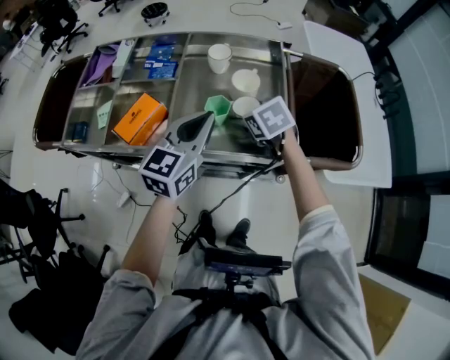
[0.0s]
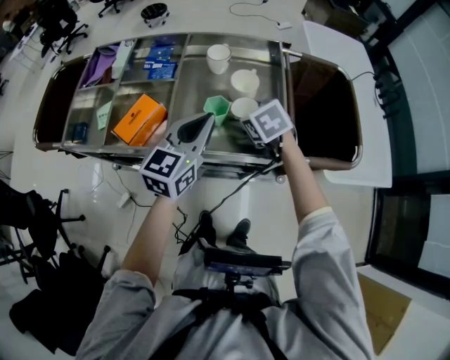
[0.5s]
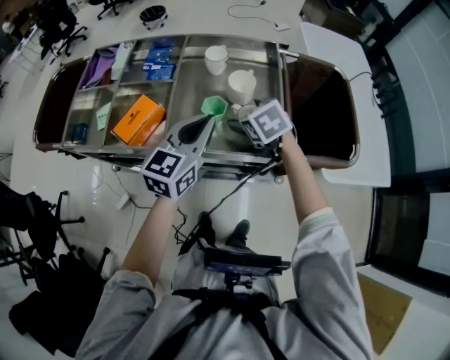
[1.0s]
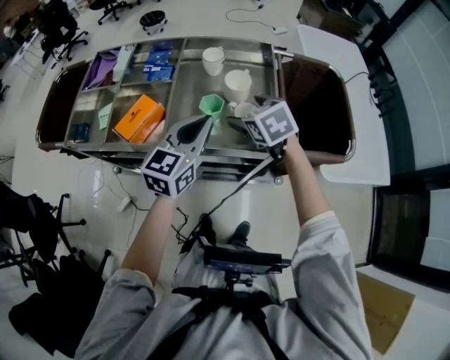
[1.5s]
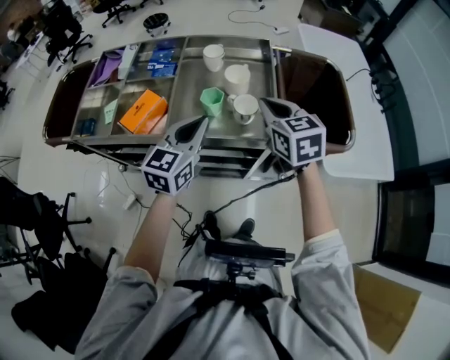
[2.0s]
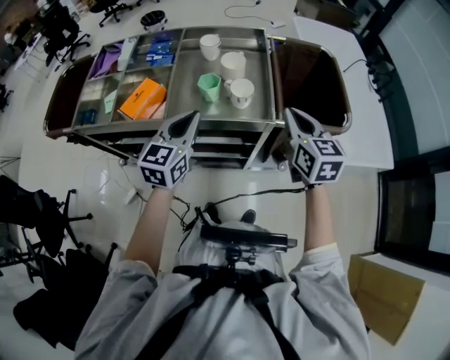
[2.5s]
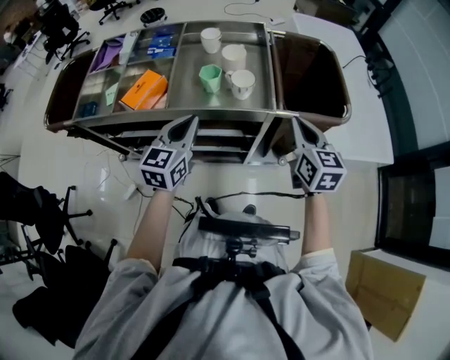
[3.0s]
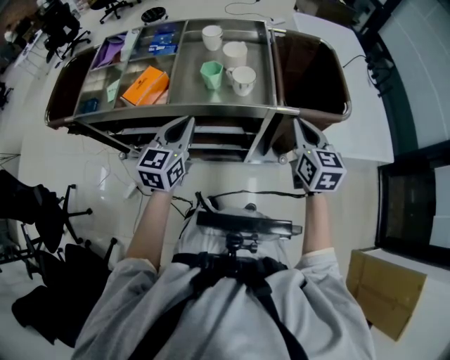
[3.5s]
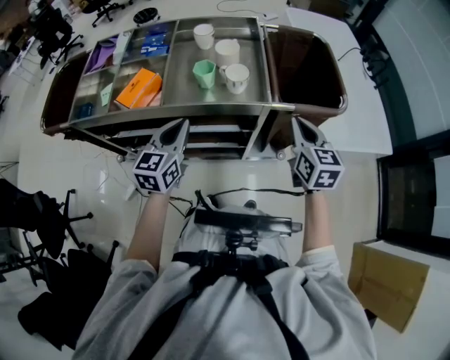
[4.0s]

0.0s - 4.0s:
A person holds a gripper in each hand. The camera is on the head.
0.0s - 2.0s: The right gripper travels upward, backward and to the right by roughly 15 cm, swivels about 30 degrees, and closes its fingers, while the left gripper moves backward, about 5 cm.
2.0s - 4.0s: The left gripper is displaced backward and downward by approximately 10 cm, while the right gripper goes roughly 20 cm backward, to the right and downward.

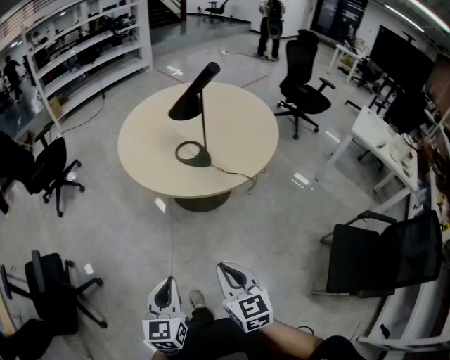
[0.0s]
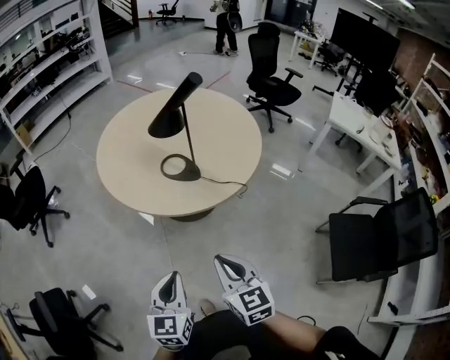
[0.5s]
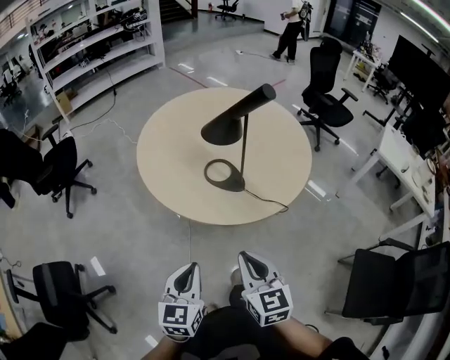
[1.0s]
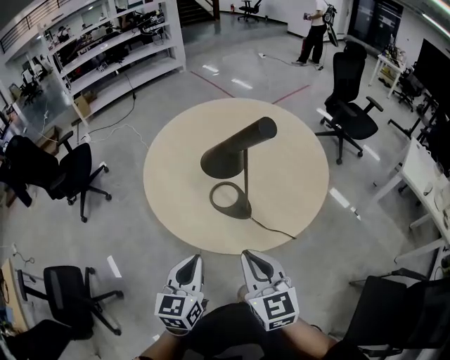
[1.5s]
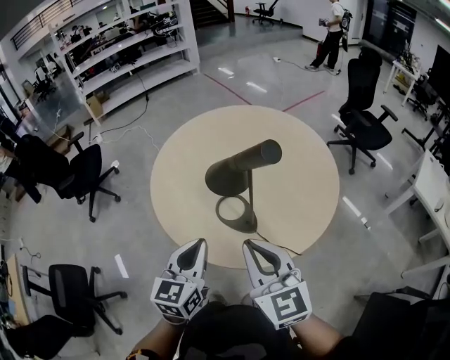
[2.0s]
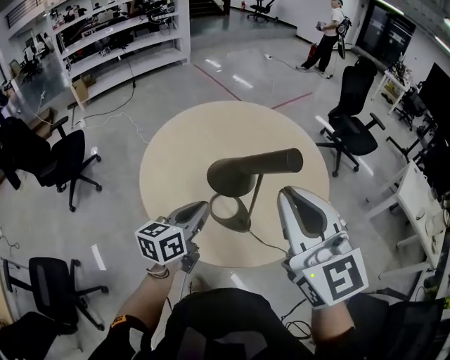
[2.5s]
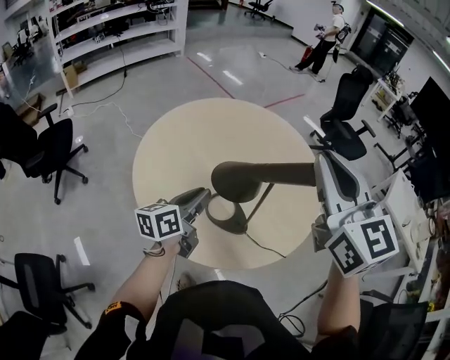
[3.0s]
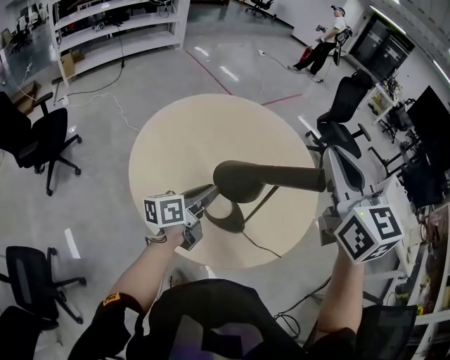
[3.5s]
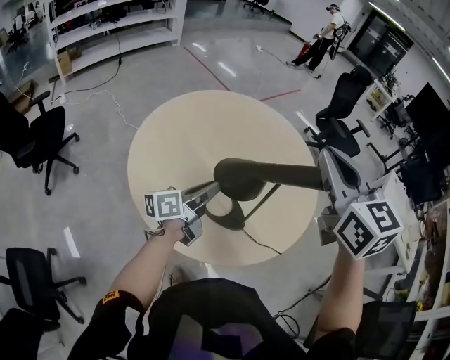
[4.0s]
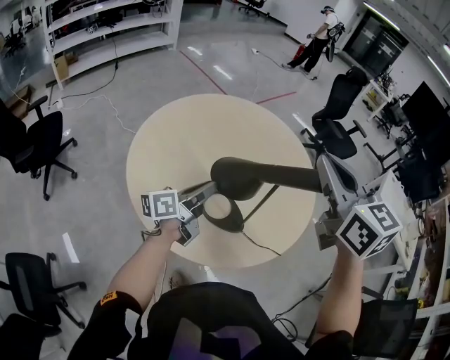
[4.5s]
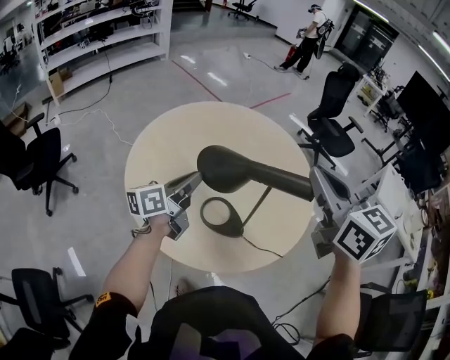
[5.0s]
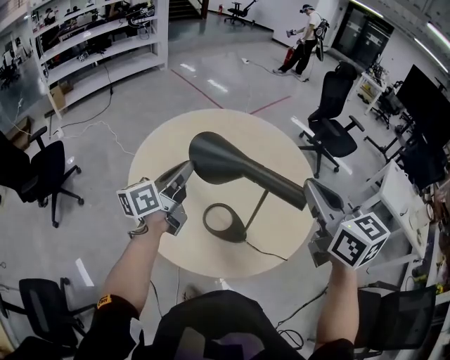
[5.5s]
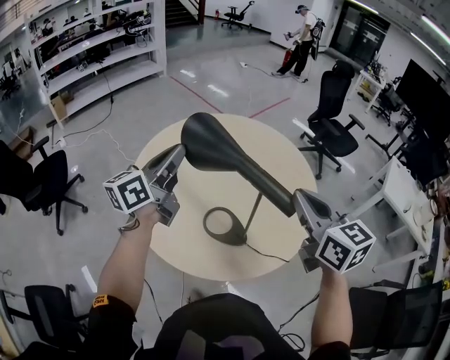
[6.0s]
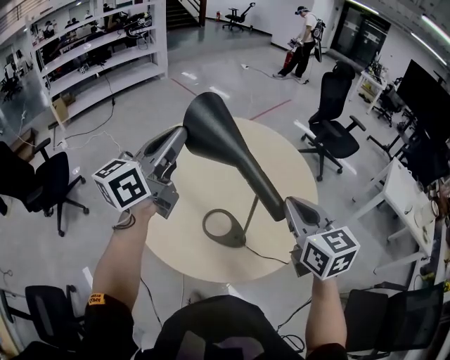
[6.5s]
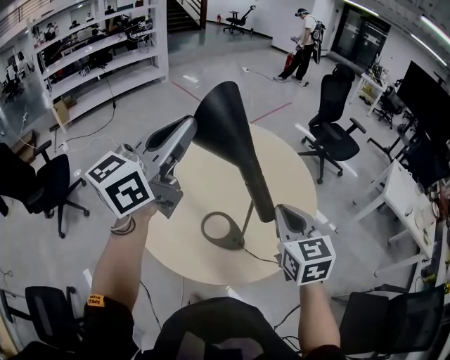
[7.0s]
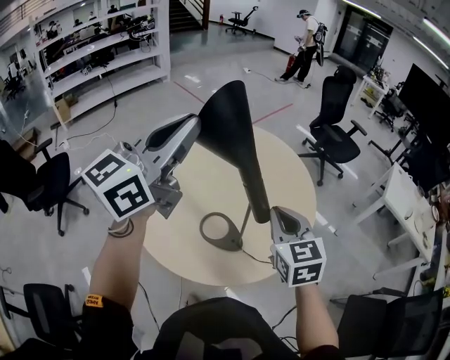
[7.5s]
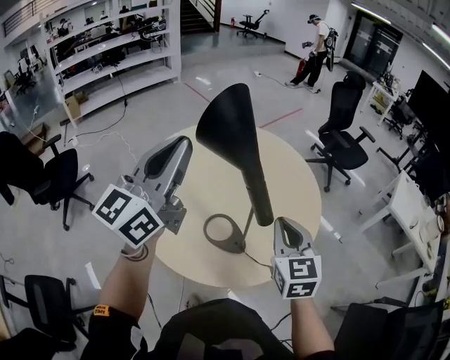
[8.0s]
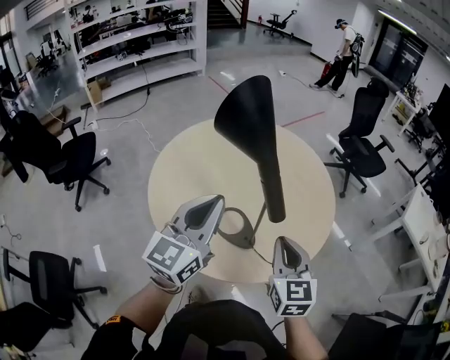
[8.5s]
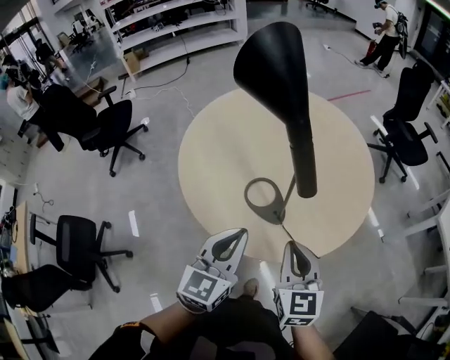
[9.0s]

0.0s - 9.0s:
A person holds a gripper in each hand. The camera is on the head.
0.0s - 2.0s: Both grippers are carried forward, about 50 cm. The right gripper turns by about 30 degrees.
2.0s - 4.5s: The right gripper moves forward and upward, some 25 cm. The left gripper goes some 25 cm forward and to the left, and changes its angle by roughly 60 degrees.
4.5s - 7.0s: The right gripper moves downward and to the right, some 15 cm. Meanwhile the left gripper shifts some 30 cm upward, and twists some 50 degrees clockwise, seen from behind.
7.0s - 9.0s: The right gripper is displaced downward and backward by approximately 15 cm. Meanwhile the left gripper moves downward, backward and to the right, approximately 35 cm, and rotates approximately 40 degrees.

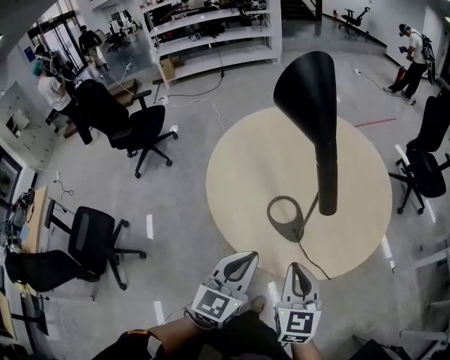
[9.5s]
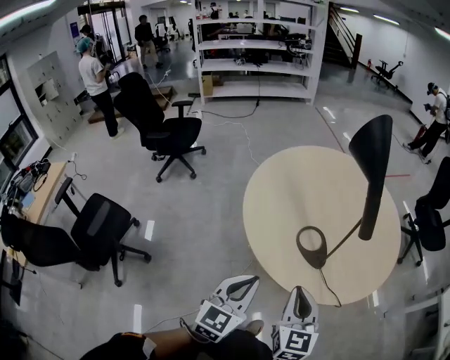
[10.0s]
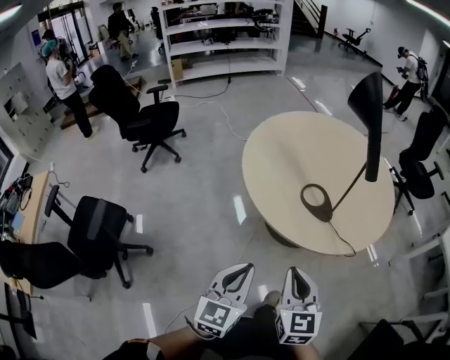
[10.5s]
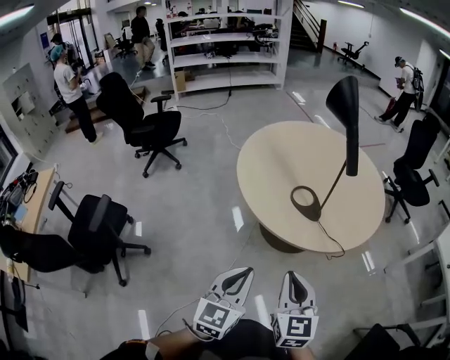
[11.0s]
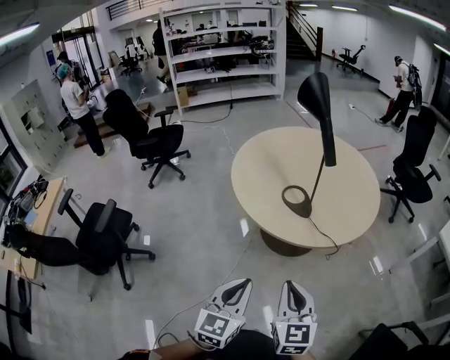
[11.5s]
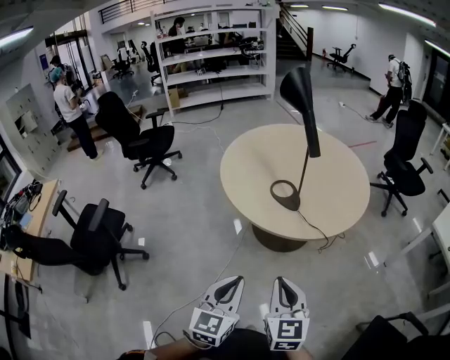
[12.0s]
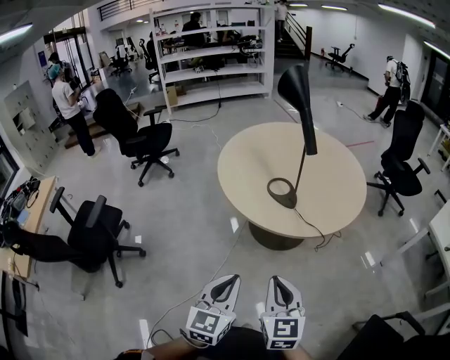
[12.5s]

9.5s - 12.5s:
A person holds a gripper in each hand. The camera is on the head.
9.5s - 11.0s: Both grippers move backward and to the left, some 40 cm.
11.0s - 12.5s: The grippers both shift to the right and backward by approximately 20 cm.

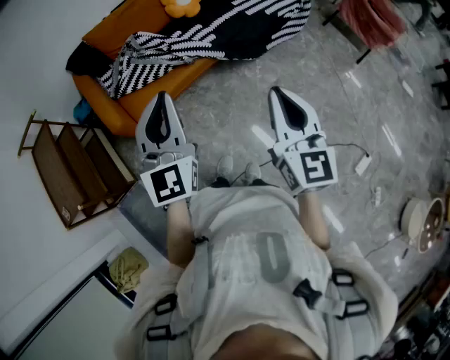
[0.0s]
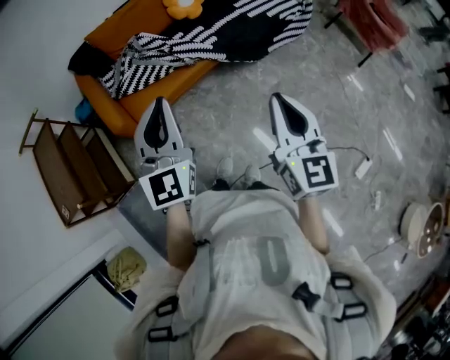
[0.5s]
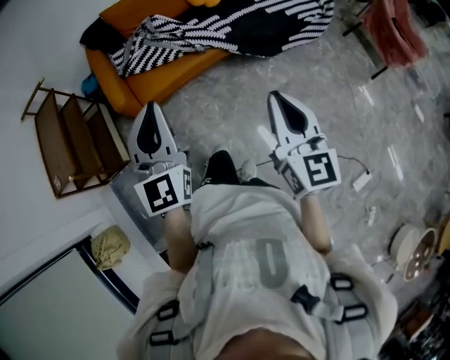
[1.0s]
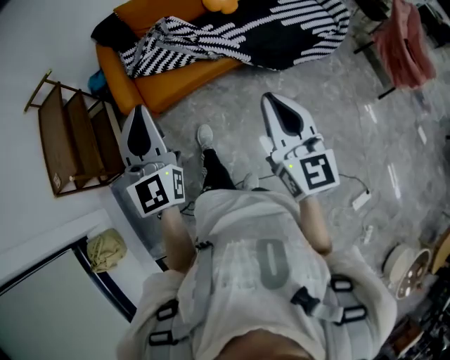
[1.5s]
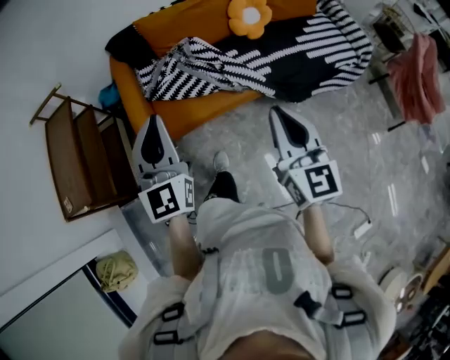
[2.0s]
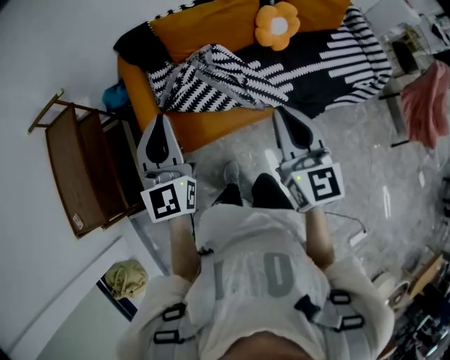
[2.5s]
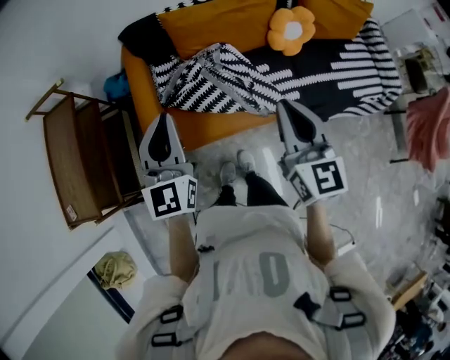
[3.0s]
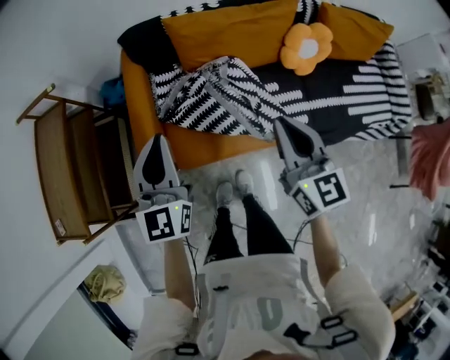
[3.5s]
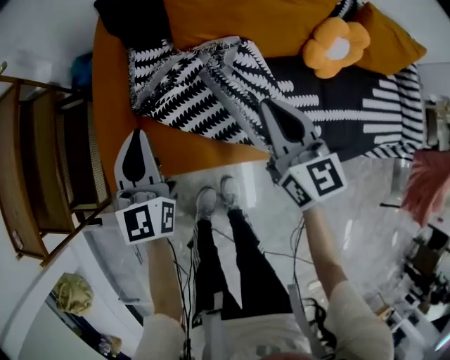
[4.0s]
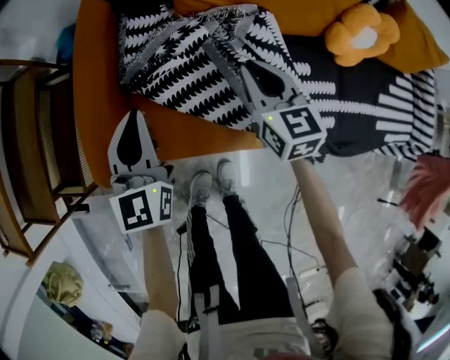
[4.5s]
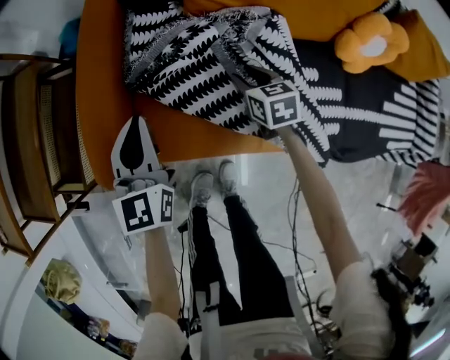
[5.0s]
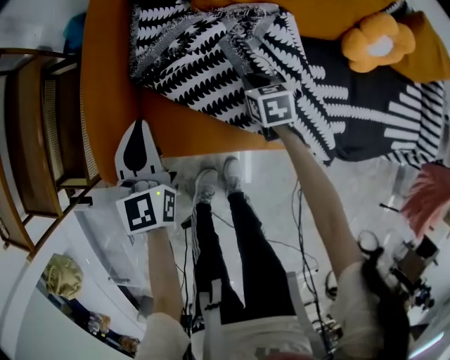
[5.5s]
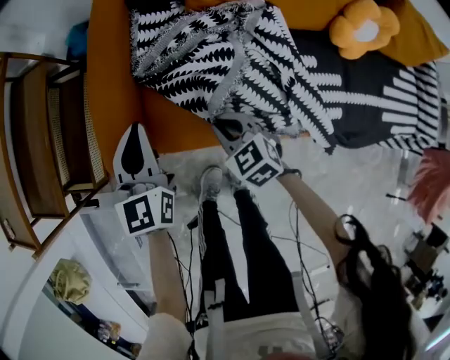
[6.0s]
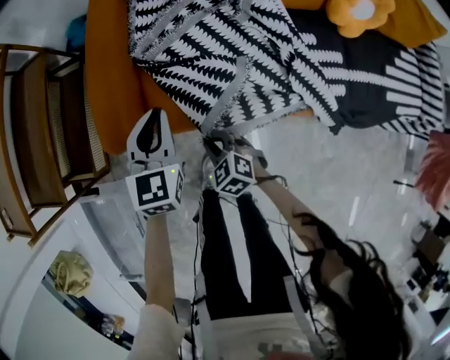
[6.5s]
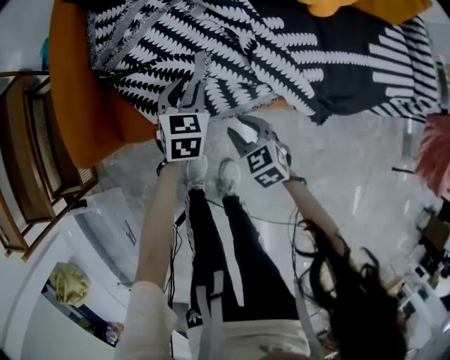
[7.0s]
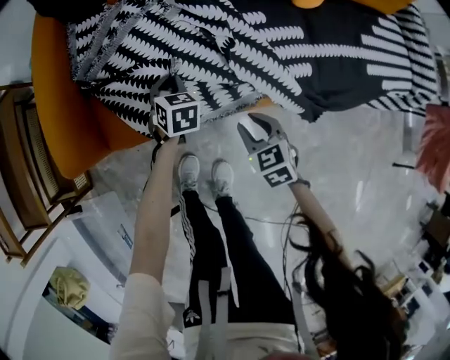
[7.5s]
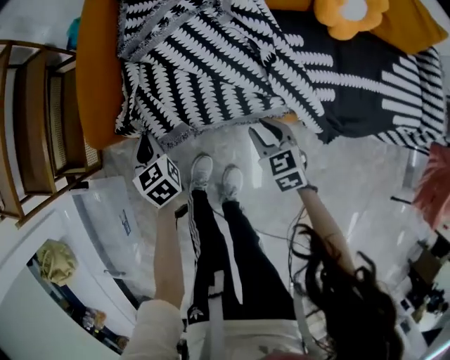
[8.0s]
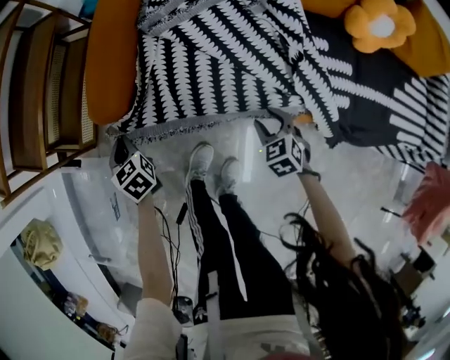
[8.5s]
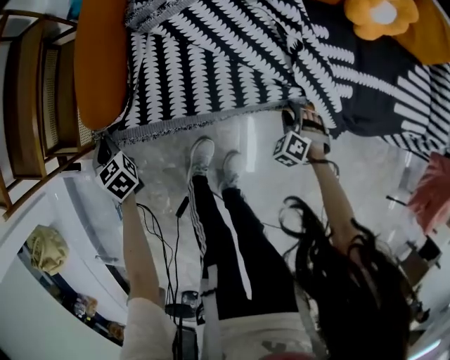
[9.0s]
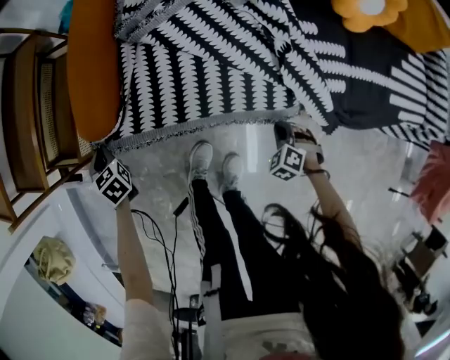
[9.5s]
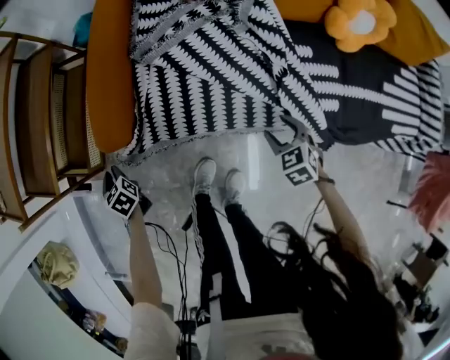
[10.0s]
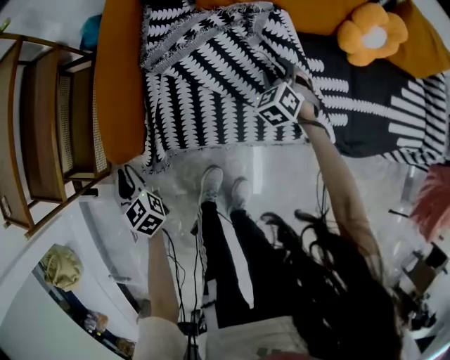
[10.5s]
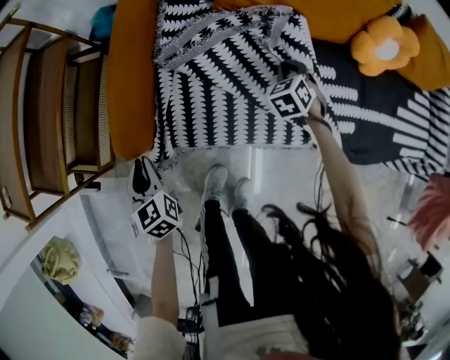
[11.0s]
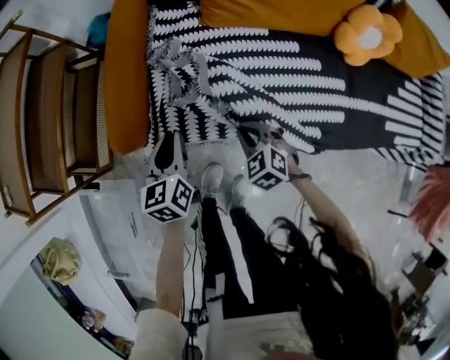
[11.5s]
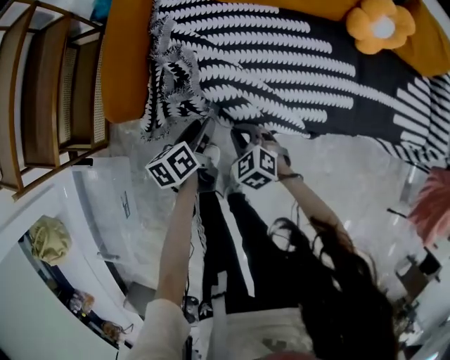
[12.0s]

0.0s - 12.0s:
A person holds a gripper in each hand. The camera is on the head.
0.0s - 2.0s: The two grippers go some 20 cm forward and to the left. The left gripper changes its angle by roughly 20 degrees. The right gripper rotates some 20 degrees.
2.0s - 4.0s: The two grippers go roughly 50 cm forward and downward. The right gripper turns by approximately 30 degrees. The left gripper turns by some 20 degrees.
4.0s - 6.0s: The left gripper moves downward and to the left, approximately 10 cm; the right gripper heads downward and to the left, covering roughly 30 cm, points its fingers approximately 30 degrees further downward, and opens and closes again.
6.0s - 8.0s: The right gripper goes left and right, roughly 25 cm each way, reversing 2 times, and opens. Meanwhile the left gripper moves downward and backward, approximately 20 cm, moves roughly 25 cm to the right and comes back, changes its angle by about 30 degrees, and opens, then closes again.
8.0s - 10.0s: The right gripper moves some 15 cm downward and comes back, and opens up. Meanwhile the left gripper is displaced to the left by roughly 25 cm, and changes its angle by about 20 degrees.
10.0s - 12.0s: The right gripper closes its fingers. Meanwhile the left gripper ends up roughly 30 cm from where it was, rotates some 60 degrees, and opens up.
